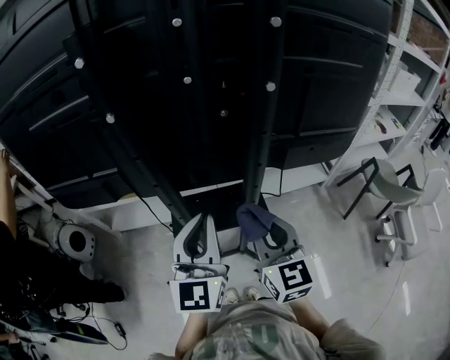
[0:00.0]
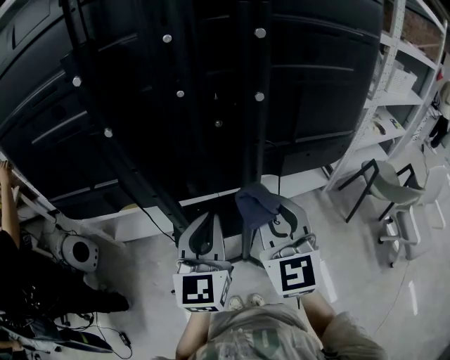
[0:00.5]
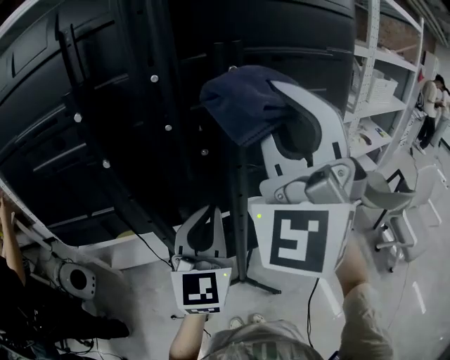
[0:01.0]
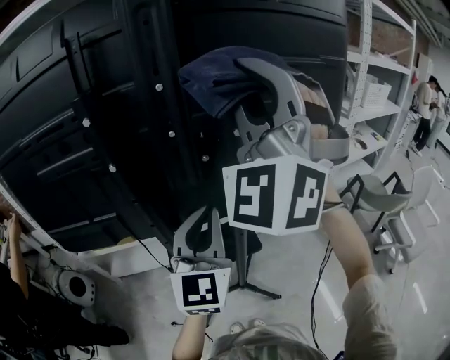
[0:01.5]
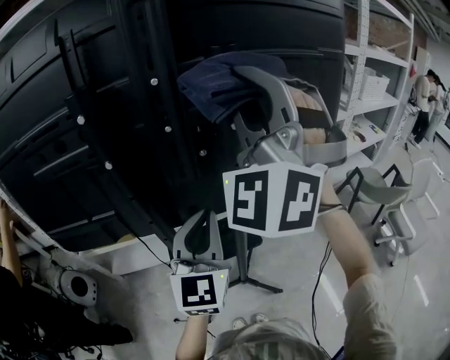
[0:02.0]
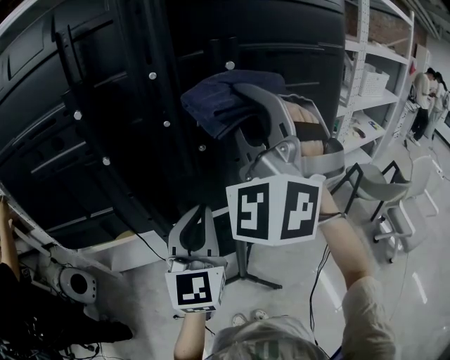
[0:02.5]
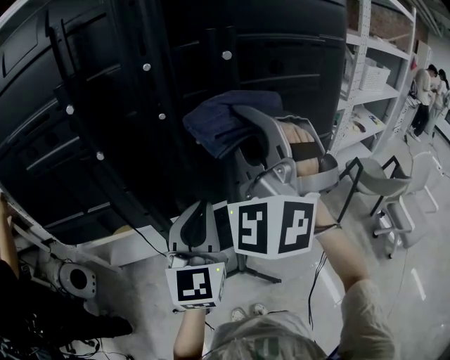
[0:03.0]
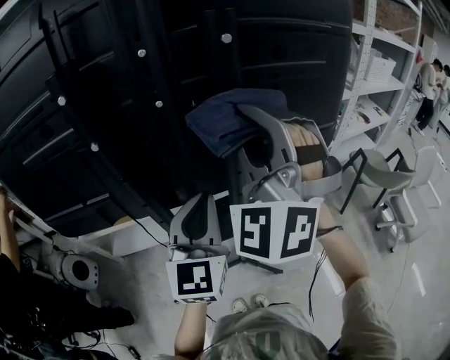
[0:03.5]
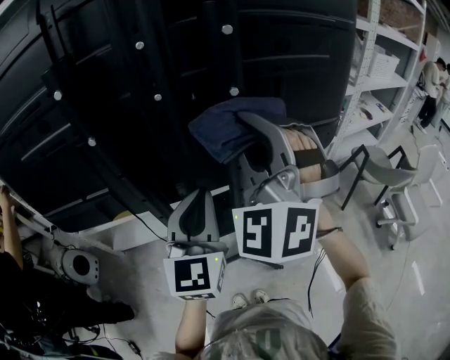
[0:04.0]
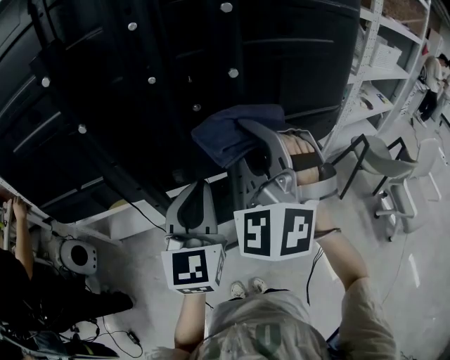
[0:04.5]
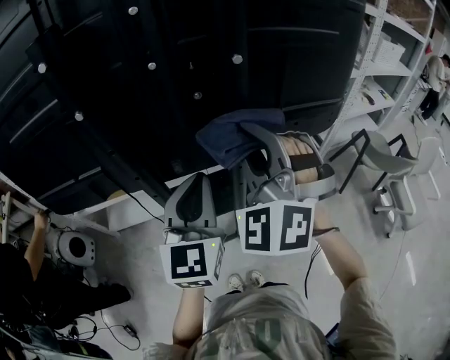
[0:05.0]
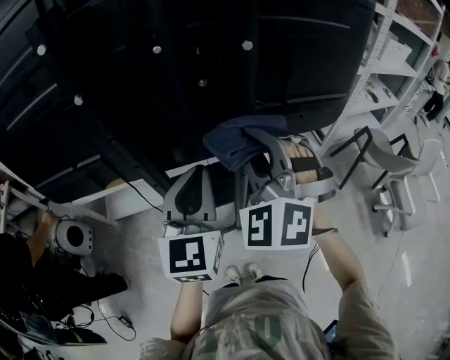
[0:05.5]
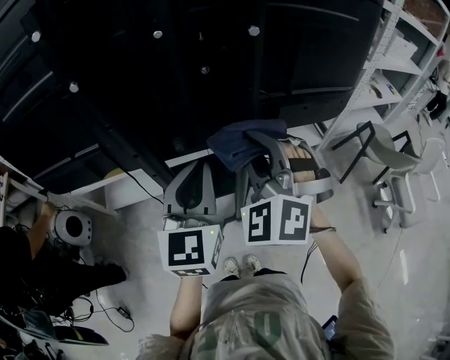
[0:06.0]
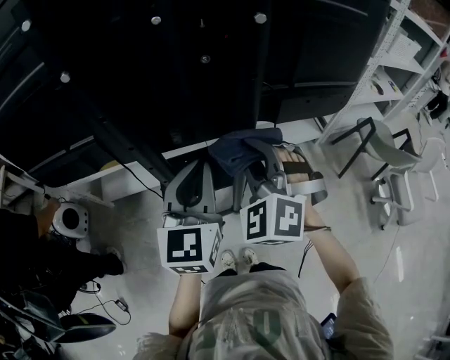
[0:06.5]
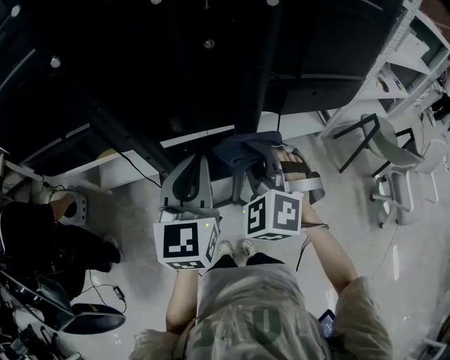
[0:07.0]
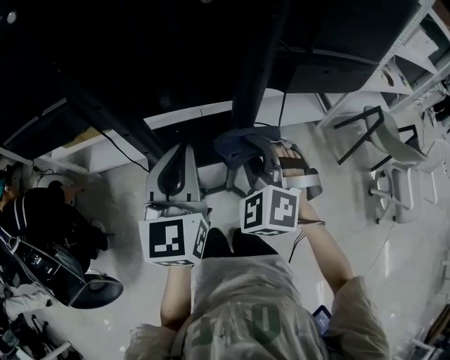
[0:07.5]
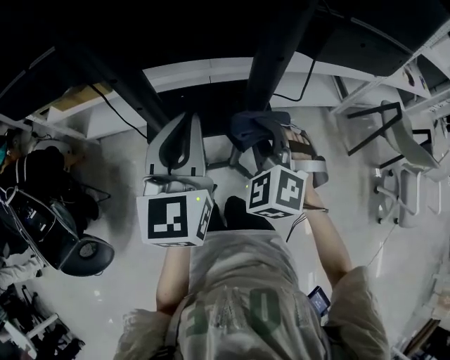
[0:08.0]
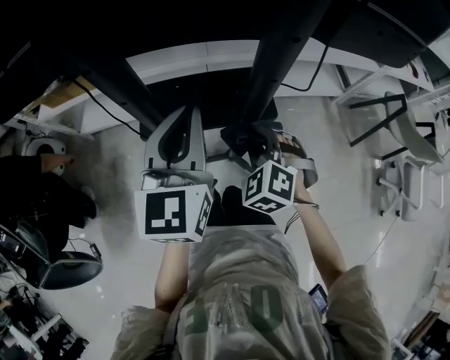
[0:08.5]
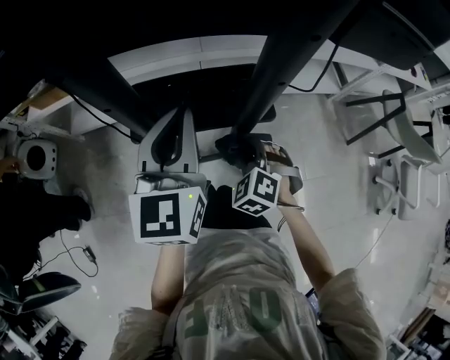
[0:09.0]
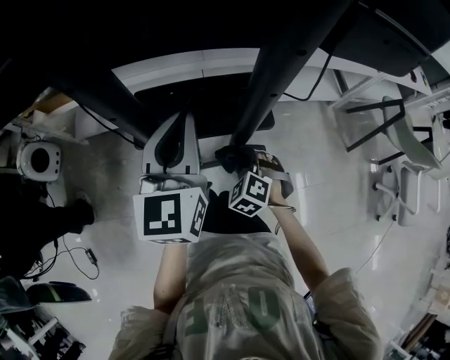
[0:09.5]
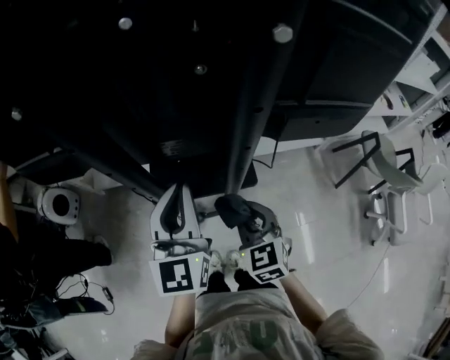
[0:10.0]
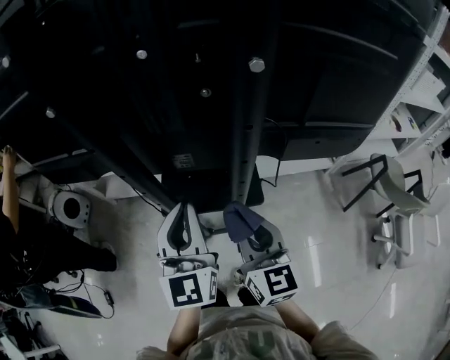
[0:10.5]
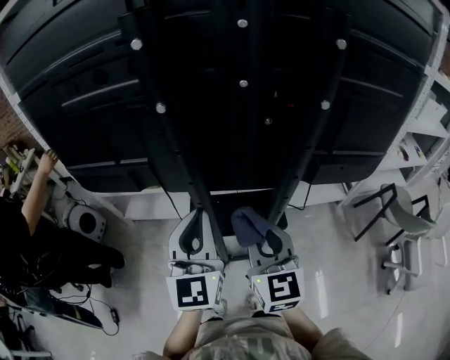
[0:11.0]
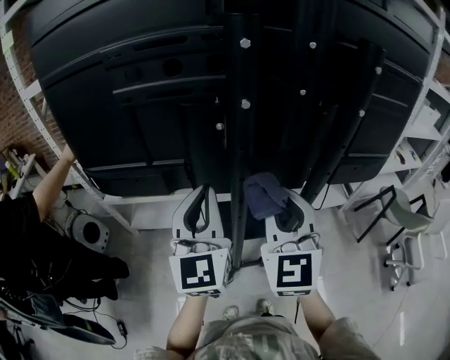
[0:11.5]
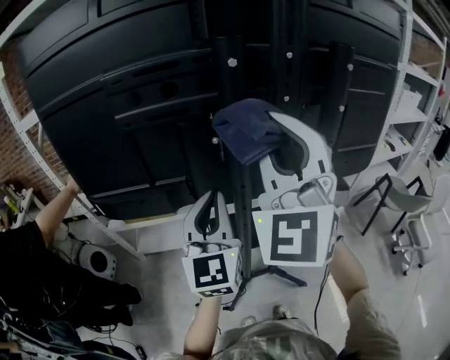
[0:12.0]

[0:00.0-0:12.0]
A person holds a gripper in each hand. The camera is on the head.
0:00.0 to 0:02.0: The right gripper goes approximately 35 cm upward, and twists some 70 degrees counterclockwise, seen from behind. Meanwhile the left gripper shifts approximately 5 cm upward.
0:02.0 to 0:04.0: The right gripper travels downward by approximately 15 cm.
0:04.0 to 0:06.0: The right gripper moves downward, some 15 cm, and swivels approximately 20 degrees.
0:06.0 to 0:08.0: The right gripper goes about 25 cm downward. The left gripper is displaced downward by some 15 cm.
0:08.0 to 0:10.0: The left gripper goes roughly 10 cm upward; the right gripper travels downward and back again, about 25 cm each way, and twists about 40 degrees clockwise, seen from behind.
0:10.0 to 0:12.0: The left gripper shifts roughly 20 cm to the left and upward. The right gripper moves upward and to the left, about 50 cm, and tips its fingers upward by some 50 degrees.

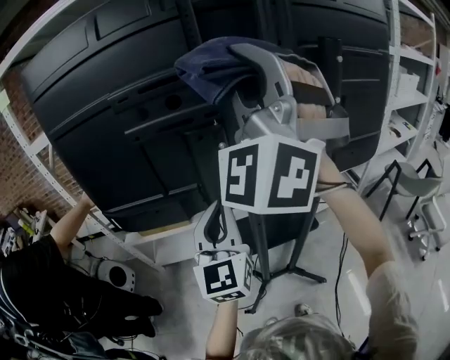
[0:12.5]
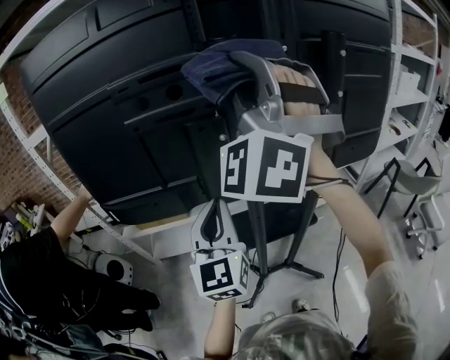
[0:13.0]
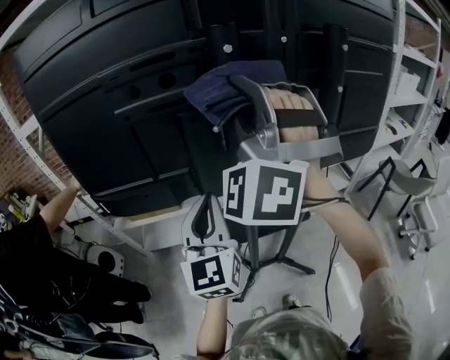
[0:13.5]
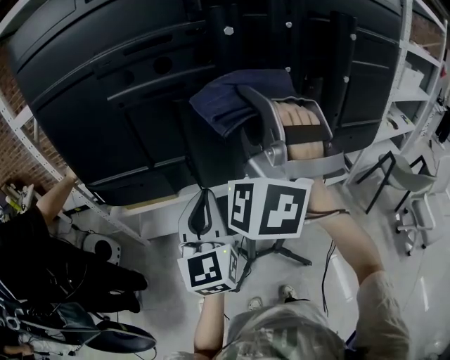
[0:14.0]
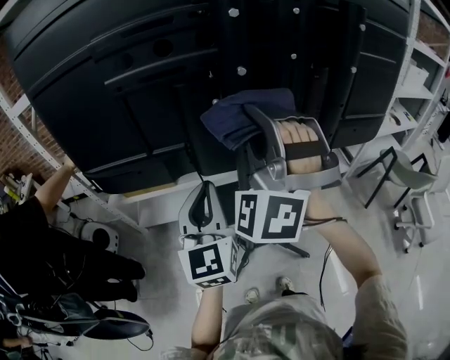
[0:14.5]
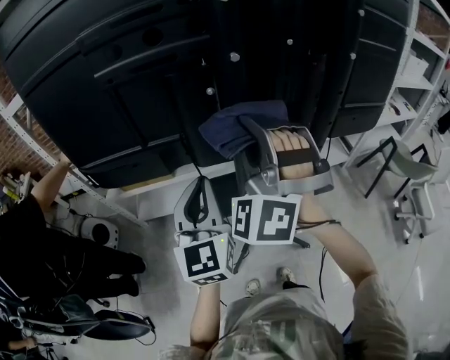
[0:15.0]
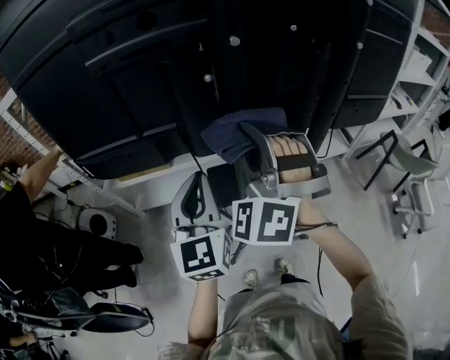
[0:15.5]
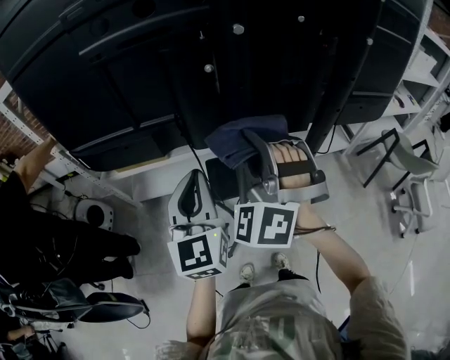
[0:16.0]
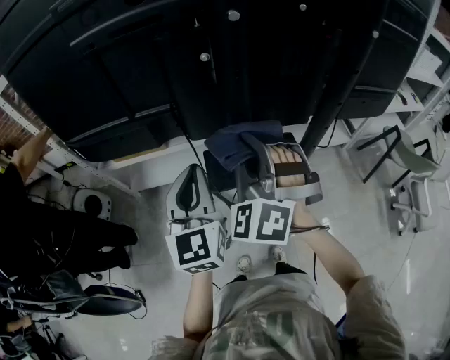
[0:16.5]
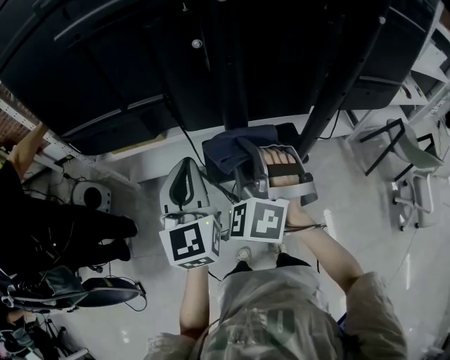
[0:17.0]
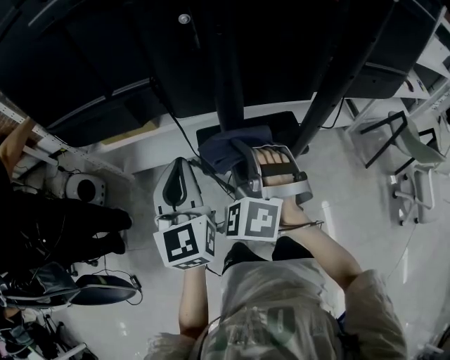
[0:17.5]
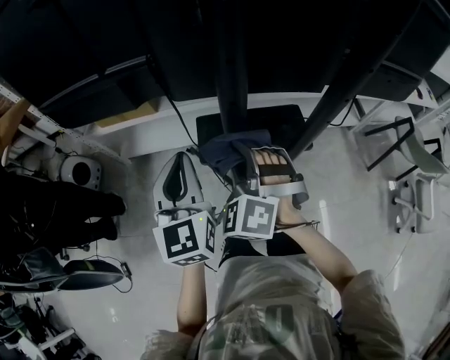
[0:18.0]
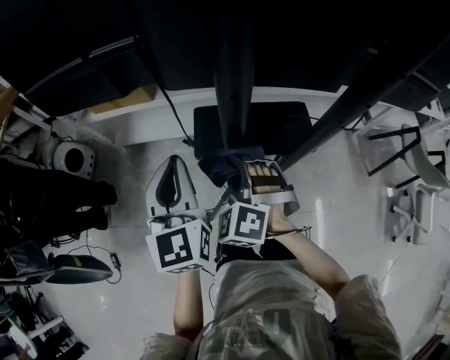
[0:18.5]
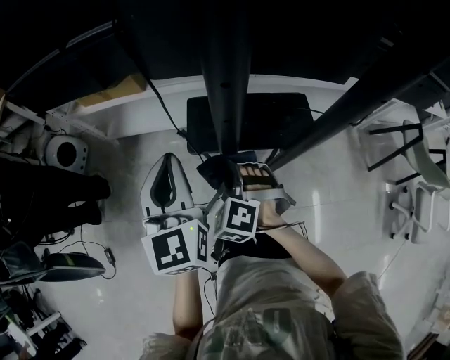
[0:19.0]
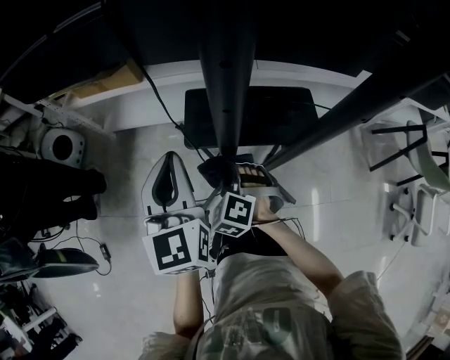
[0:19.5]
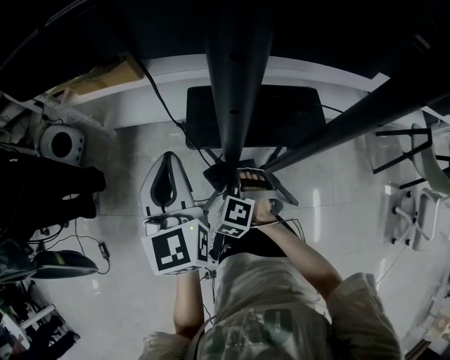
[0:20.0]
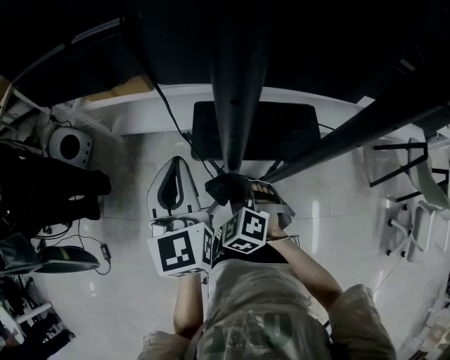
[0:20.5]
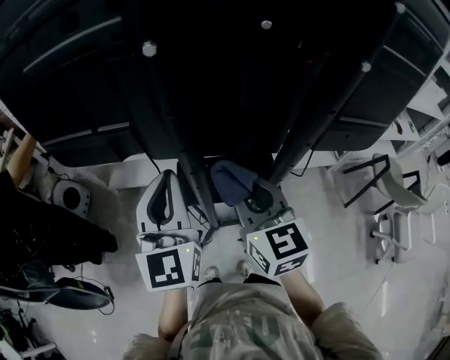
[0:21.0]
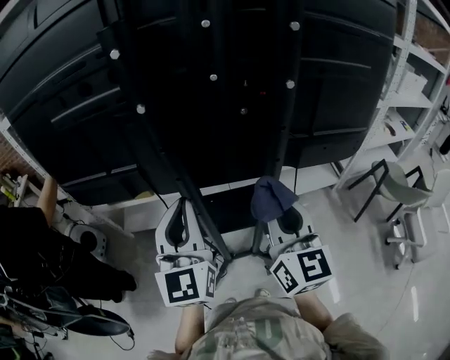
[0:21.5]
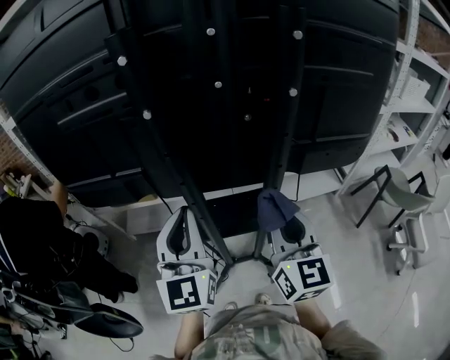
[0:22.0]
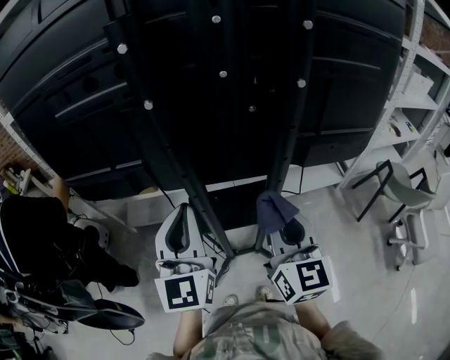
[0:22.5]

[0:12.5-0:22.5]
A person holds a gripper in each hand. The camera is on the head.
0:12.5 to 0:14.5: The left gripper changes place by roughly 5 cm; the right gripper moves downward, approximately 20 cm, and swivels approximately 20 degrees.
0:14.5 to 0:16.5: The left gripper travels downward by roughly 5 cm. The right gripper is displaced downward by about 15 cm, and swivels about 20 degrees.
0:16.5 to 0:18.5: The left gripper moves downward, some 15 cm. The right gripper moves downward, some 25 cm, and changes its angle by about 30 degrees.
0:18.5 to 0:20.5: The right gripper moves downward, some 15 cm.
0:20.5 to 0:22.5: The right gripper is displaced upward and to the right by approximately 50 cm, and tips its fingers upward by some 50 degrees. The left gripper travels upward by some 25 cm, and swivels some 20 degrees.

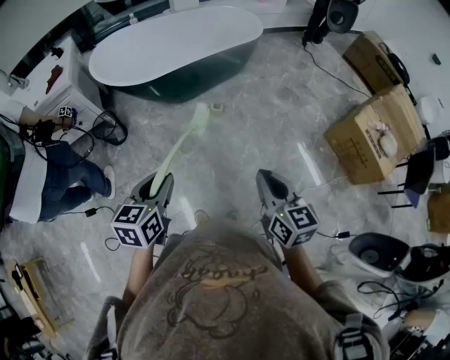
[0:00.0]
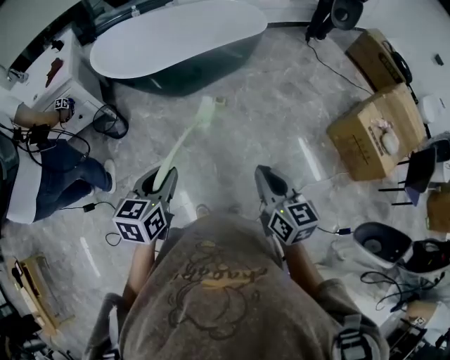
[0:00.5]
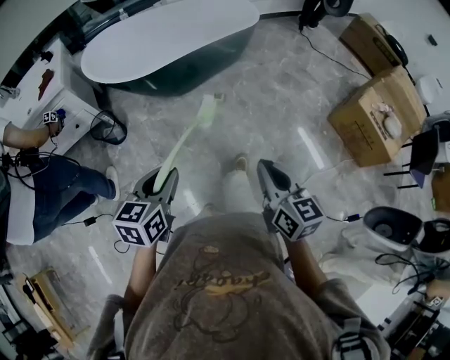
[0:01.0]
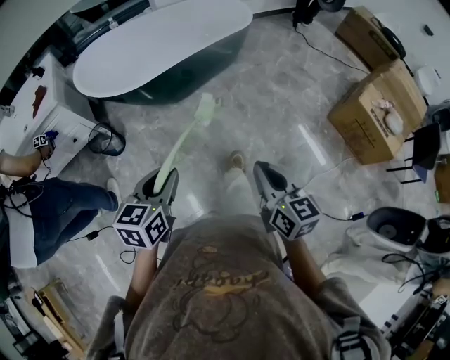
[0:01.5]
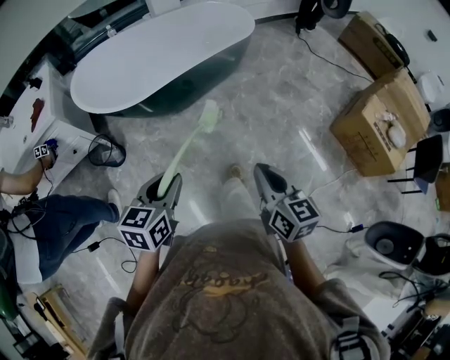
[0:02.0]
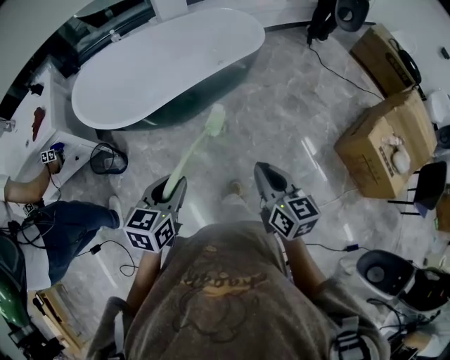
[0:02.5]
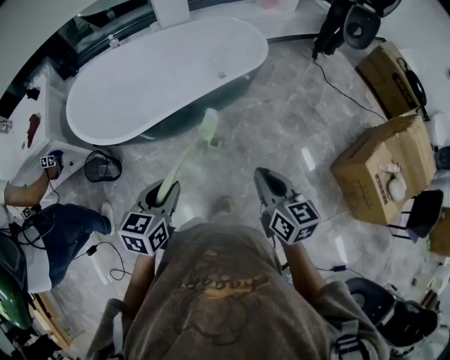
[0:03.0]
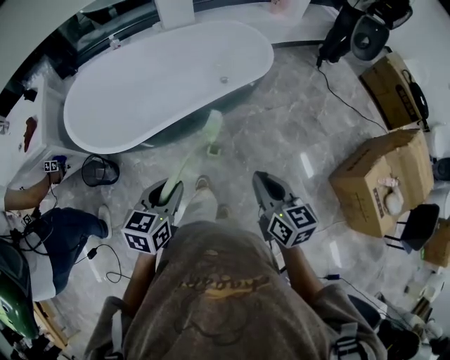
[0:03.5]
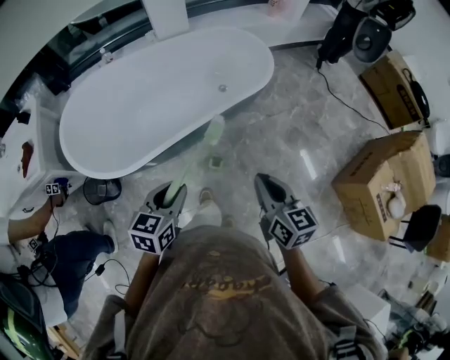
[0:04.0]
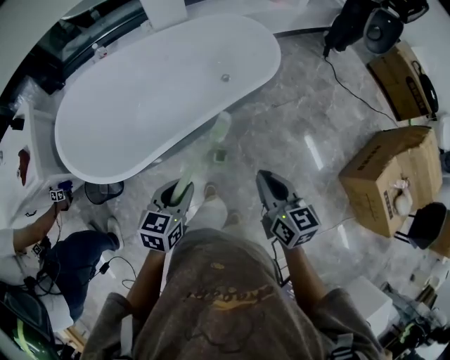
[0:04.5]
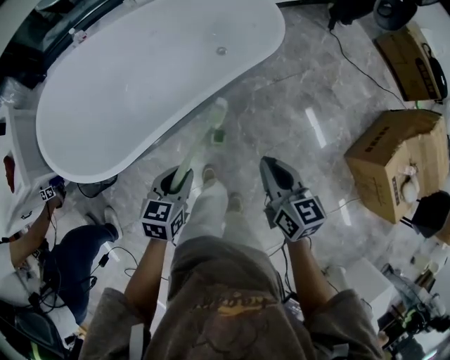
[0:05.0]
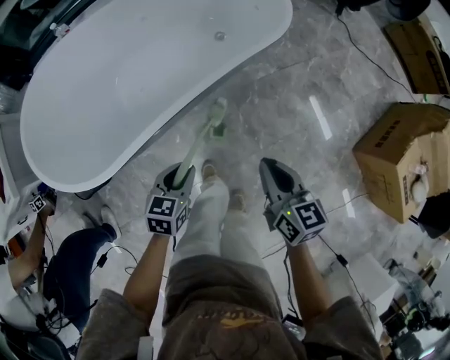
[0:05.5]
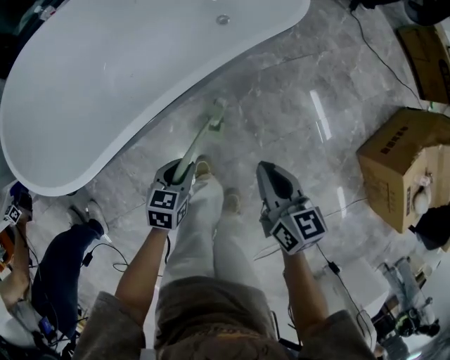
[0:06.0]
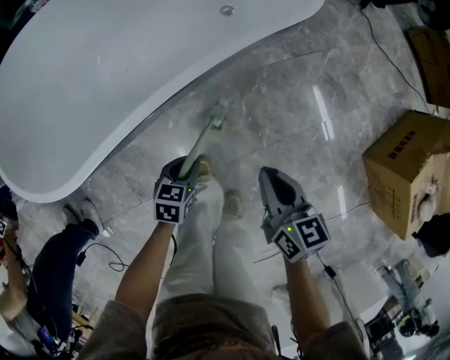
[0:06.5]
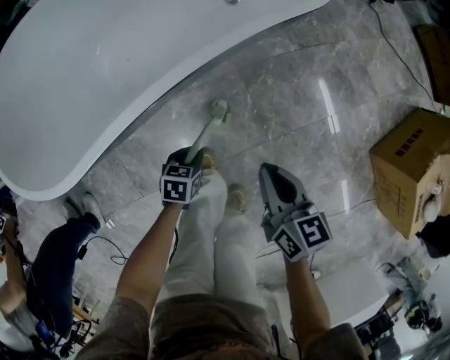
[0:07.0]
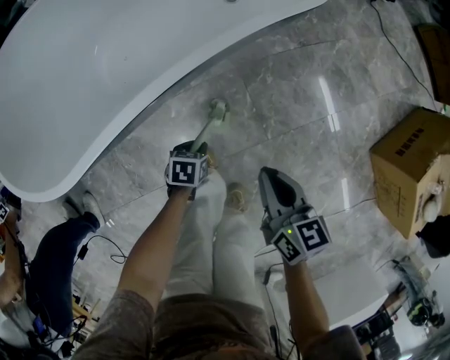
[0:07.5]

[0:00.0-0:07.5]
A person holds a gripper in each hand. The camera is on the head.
0:00.0 to 0:02.0: The grippers both shift forward by approximately 15 cm.
0:02.0 to 0:04.0: The two grippers go approximately 35 cm forward.
0:04.0 to 0:05.5: Both grippers move downward, some 20 cm.
0:05.5 to 0:07.5: The left gripper shifts roughly 30 cm downward, and swivels some 30 degrees, while the right gripper travels downward by some 15 cm.
